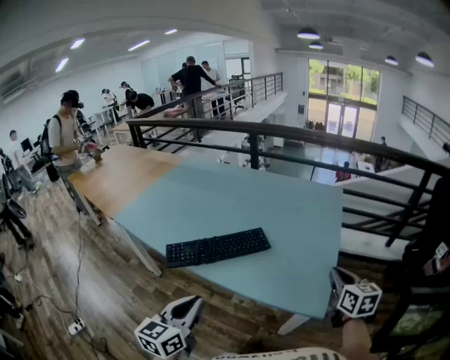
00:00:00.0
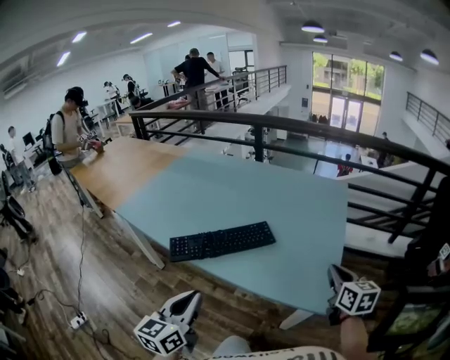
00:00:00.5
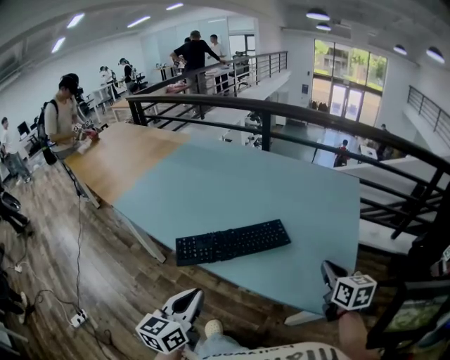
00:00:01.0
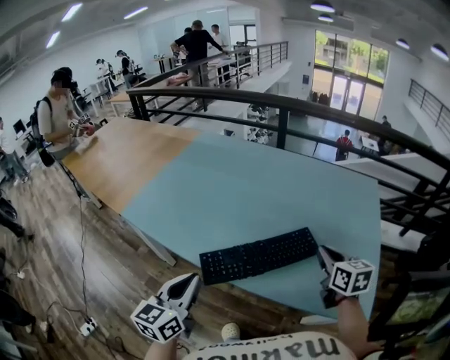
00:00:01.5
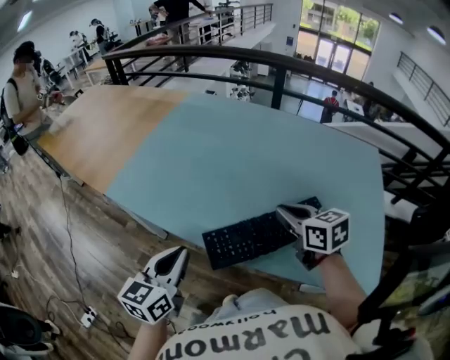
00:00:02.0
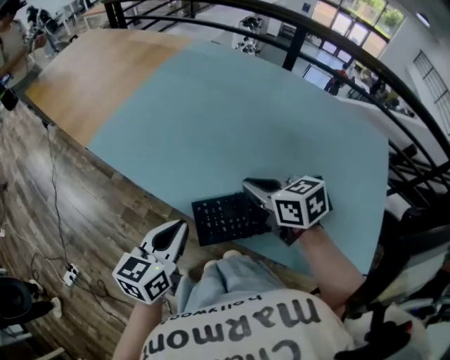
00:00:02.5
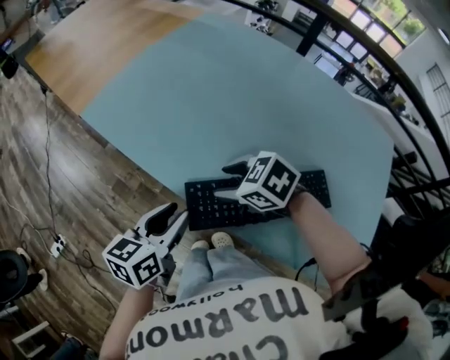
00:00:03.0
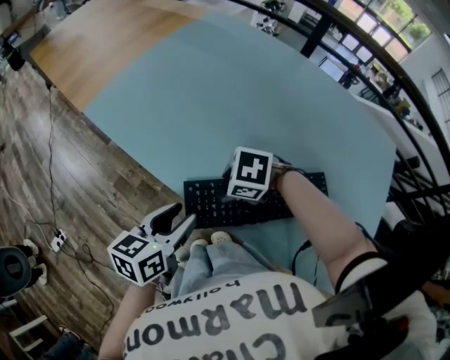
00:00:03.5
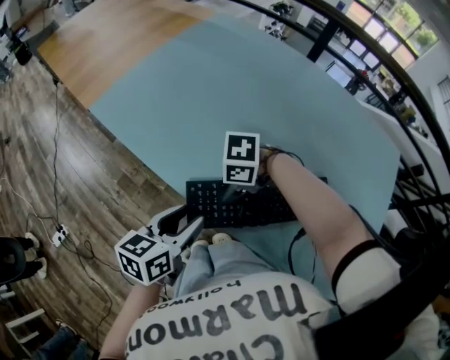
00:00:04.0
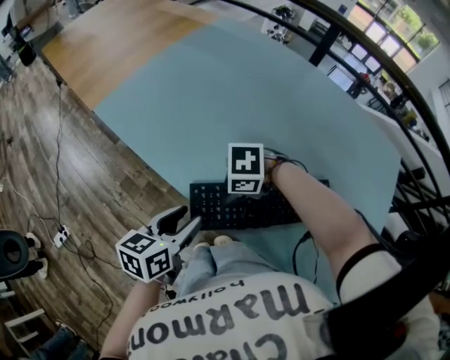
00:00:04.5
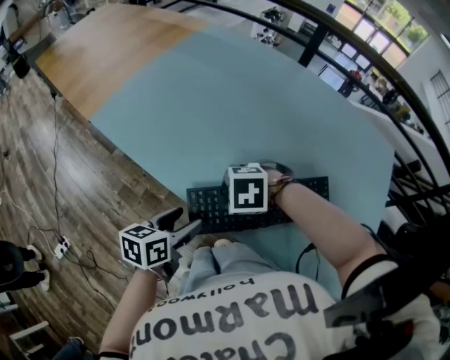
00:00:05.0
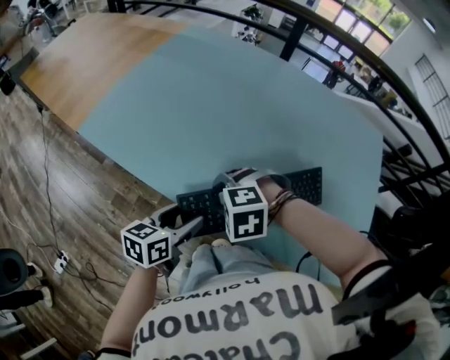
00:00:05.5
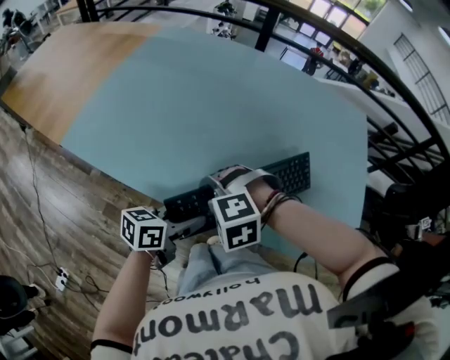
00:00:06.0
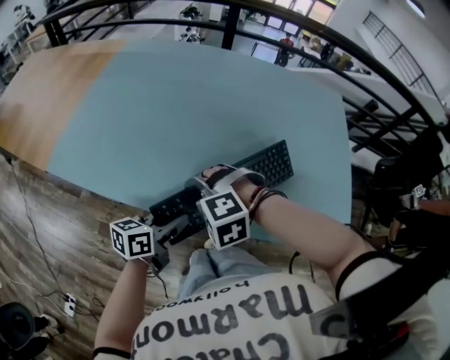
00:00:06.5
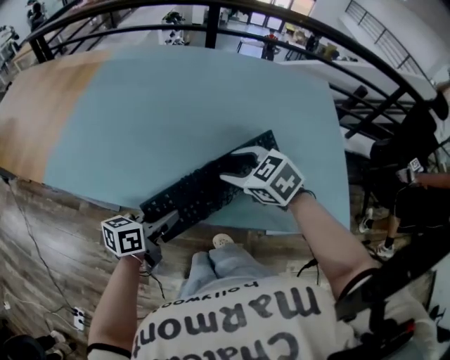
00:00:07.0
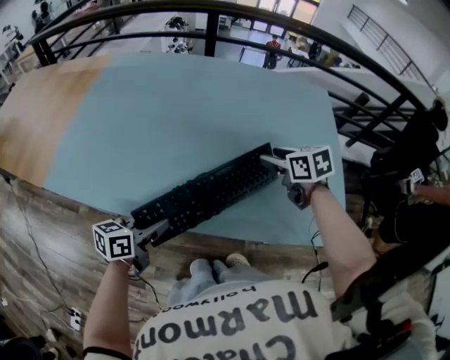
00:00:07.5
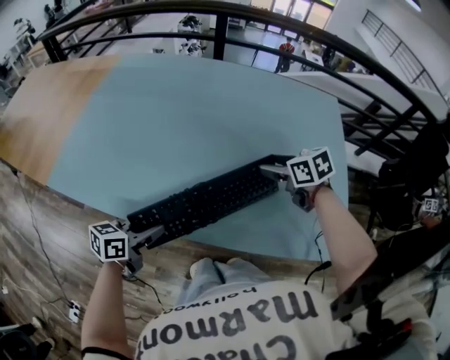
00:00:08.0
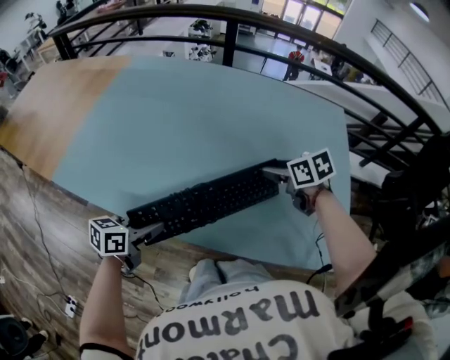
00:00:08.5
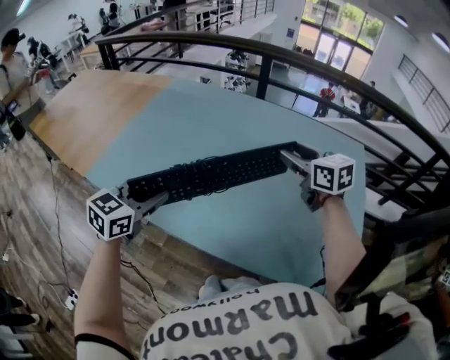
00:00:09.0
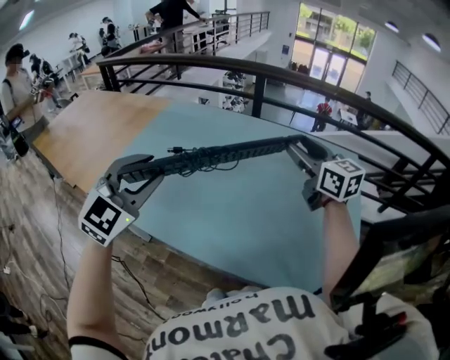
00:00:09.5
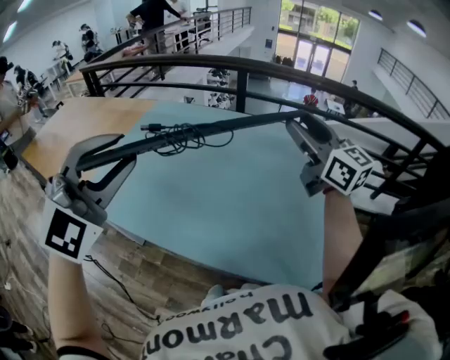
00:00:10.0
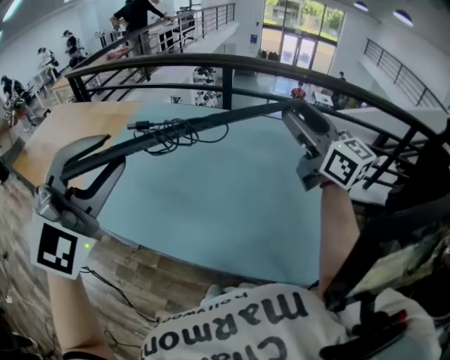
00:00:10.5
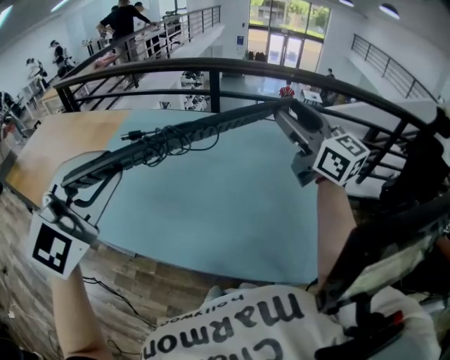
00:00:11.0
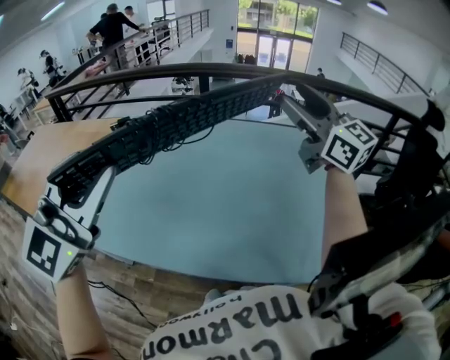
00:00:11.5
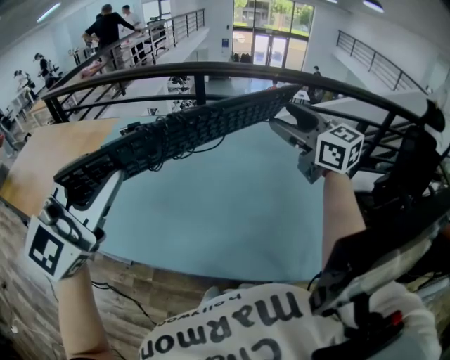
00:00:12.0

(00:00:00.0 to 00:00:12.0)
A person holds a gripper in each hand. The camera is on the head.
00:00:00.0 - 00:00:02.0: Both grippers move to the left and forward, about 35 cm. The right gripper changes its angle by approximately 30 degrees.
00:00:02.0 - 00:00:04.0: The right gripper heads downward, covering approximately 15 cm, tilts its fingers about 30 degrees downward, and opens. The left gripper heads downward, covering some 10 cm, rotates roughly 20 degrees, and opens up.
00:00:04.0 - 00:00:06.0: The right gripper travels upward by approximately 5 cm, and rotates roughly 50 degrees; the left gripper changes place by about 5 cm, and changes its angle by approximately 30 degrees.
00:00:06.0 - 00:00:08.0: The right gripper travels to the right and forward by roughly 30 cm, and rotates around the line of its fingers by approximately 90 degrees, clockwise from behind.
00:00:08.0 - 00:00:10.0: The two grippers go approximately 40 cm upward. The right gripper points its fingers approximately 60 degrees further upward; the left gripper twists some 100 degrees clockwise, seen from behind.
00:00:10.0 - 00:00:12.0: The grippers both shift to the right by some 5 cm. The left gripper rotates roughly 40 degrees.

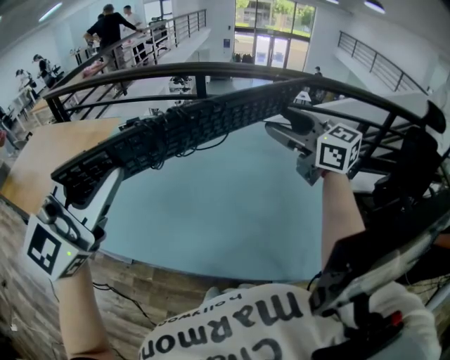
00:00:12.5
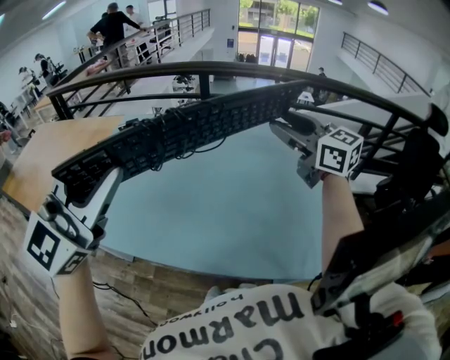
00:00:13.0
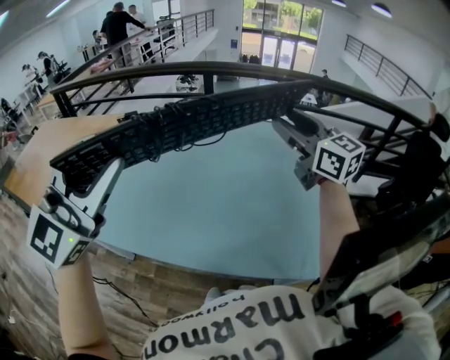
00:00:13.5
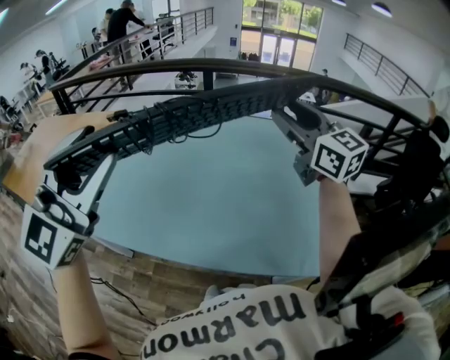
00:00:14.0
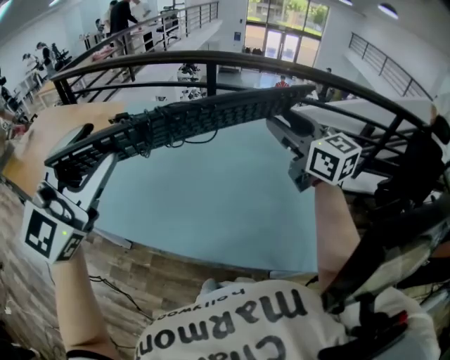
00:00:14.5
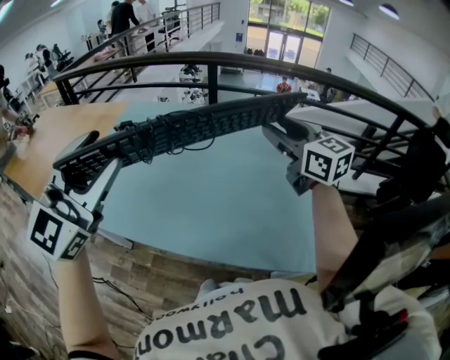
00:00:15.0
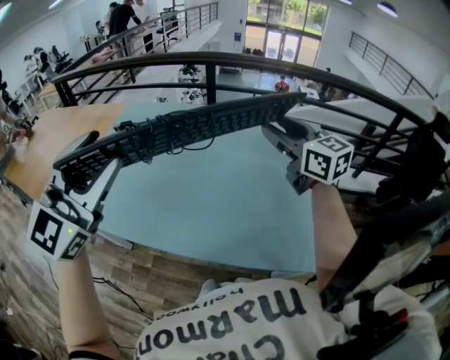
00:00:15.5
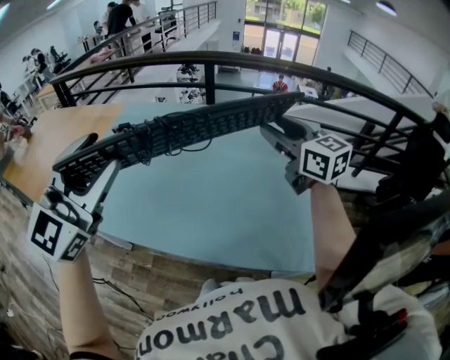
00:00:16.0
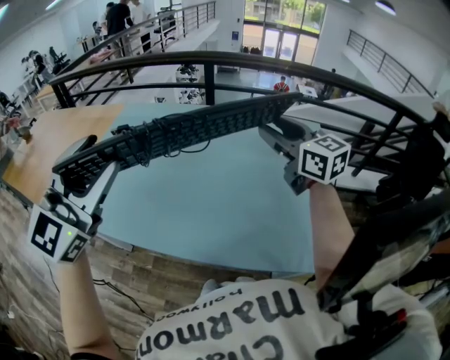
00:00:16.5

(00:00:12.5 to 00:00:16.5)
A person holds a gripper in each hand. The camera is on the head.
00:00:12.5 - 00:00:14.5: The left gripper opens up.
00:00:14.5 - 00:00:16.5: The grippers stay close to where they were, moving slightly.

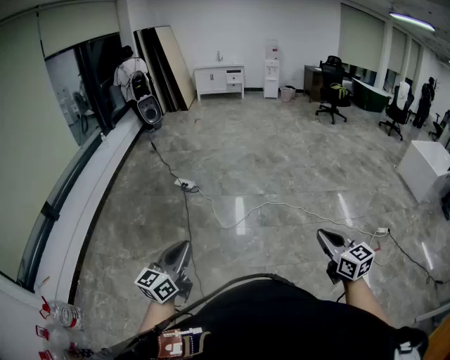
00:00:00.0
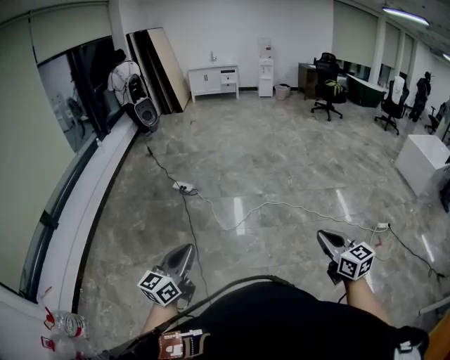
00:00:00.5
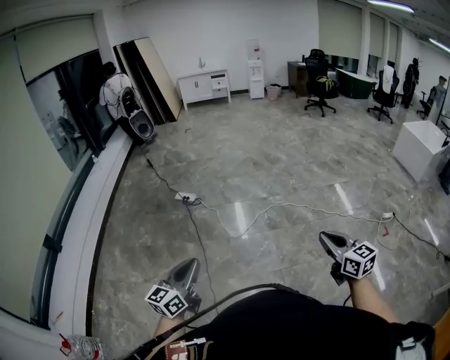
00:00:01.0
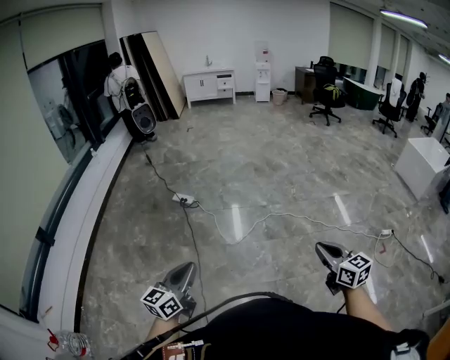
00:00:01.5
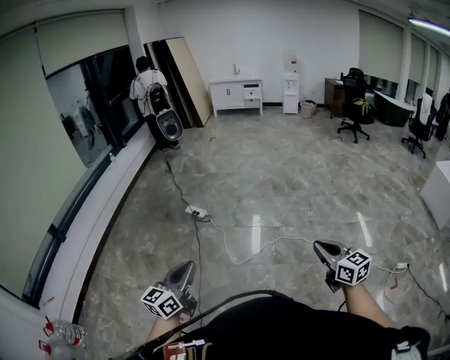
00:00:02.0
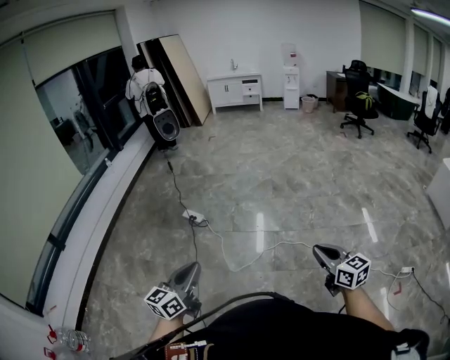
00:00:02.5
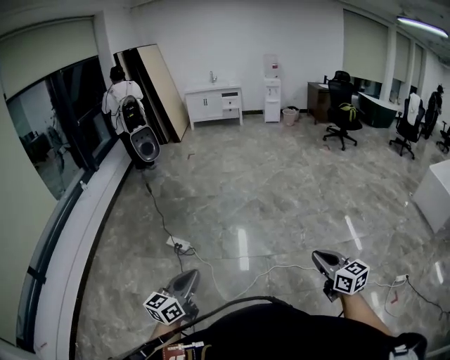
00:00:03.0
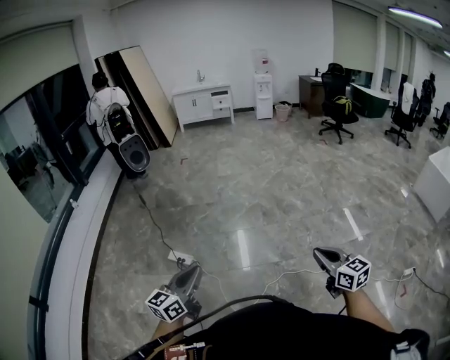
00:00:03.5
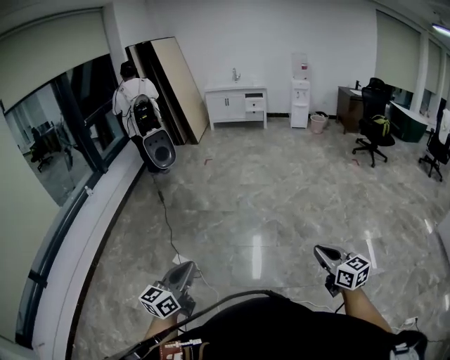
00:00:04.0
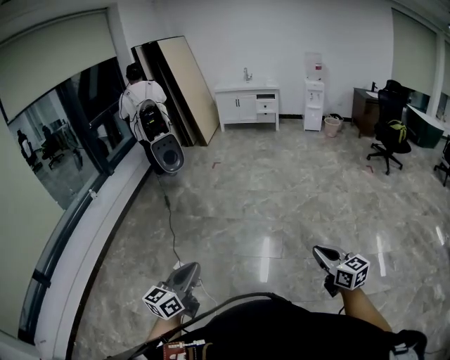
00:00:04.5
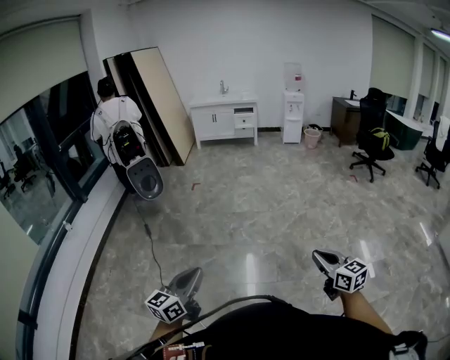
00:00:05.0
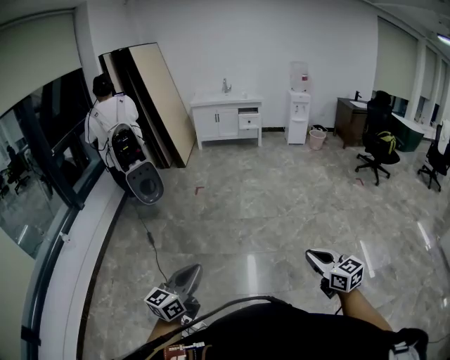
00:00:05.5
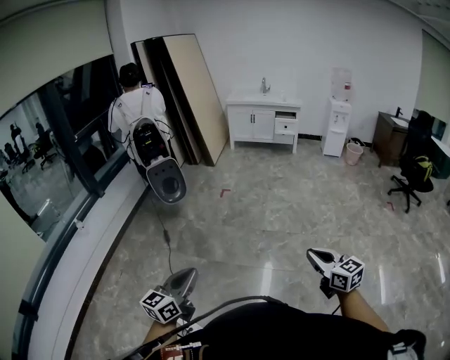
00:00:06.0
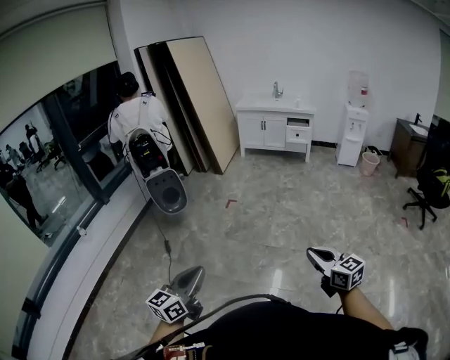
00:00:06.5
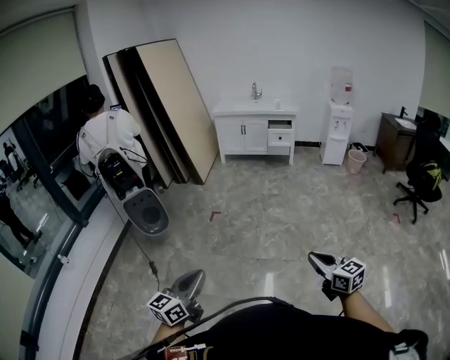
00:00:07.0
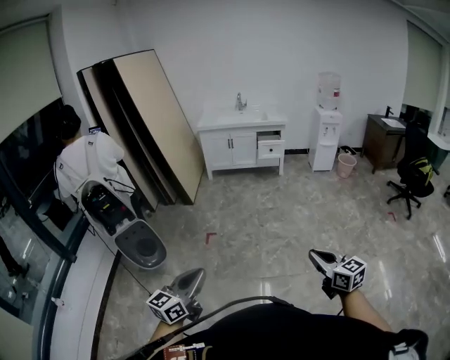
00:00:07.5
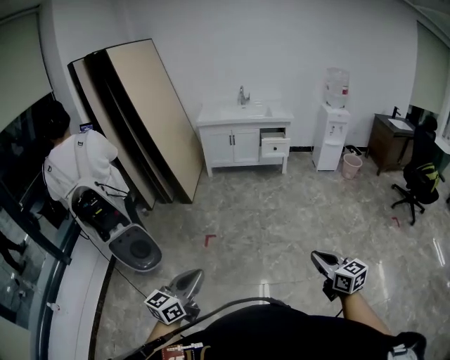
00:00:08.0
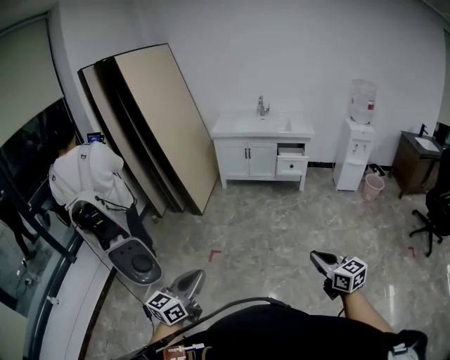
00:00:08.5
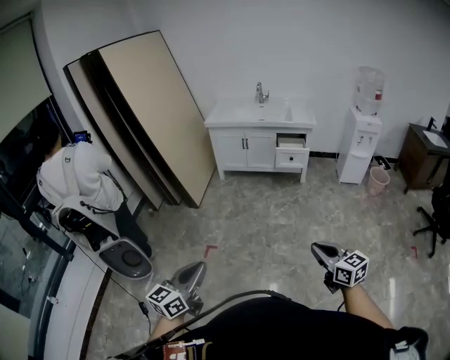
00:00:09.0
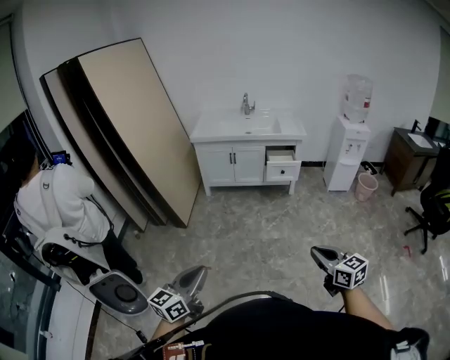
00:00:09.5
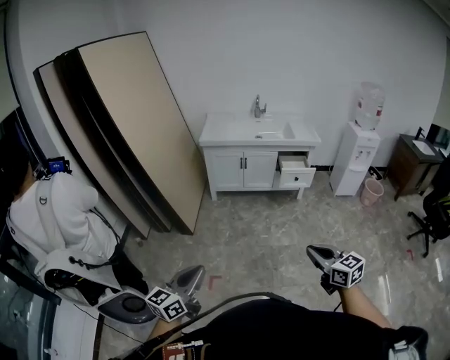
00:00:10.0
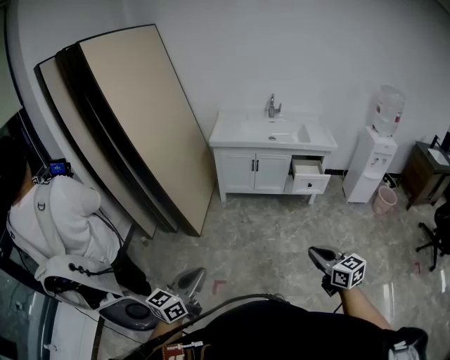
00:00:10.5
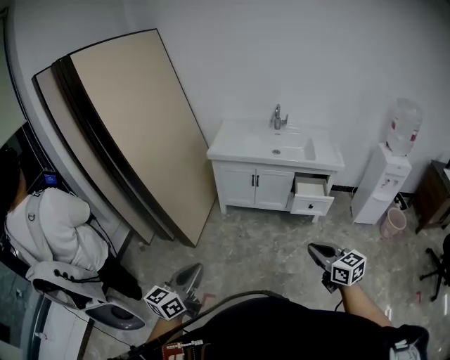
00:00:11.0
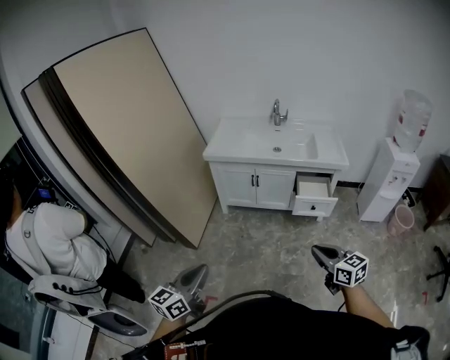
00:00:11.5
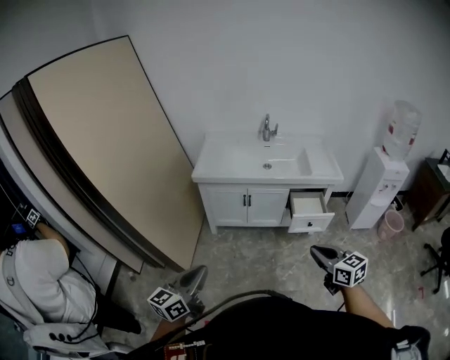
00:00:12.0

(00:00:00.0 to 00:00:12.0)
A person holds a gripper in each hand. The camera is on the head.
00:00:00.0 - 00:00:02.0: Both grippers move forward, roughly 25 cm.
00:00:02.0 - 00:00:04.0: Both grippers are carried forward, approximately 60 cm.
00:00:04.0 - 00:00:06.0: Both grippers are carried forward, roughly 70 cm.
00:00:06.0 - 00:00:08.0: Both grippers are carried forward, roughly 60 cm.
00:00:08.0 - 00:00:10.0: Both grippers are carried forward, roughly 50 cm.
00:00:10.0 - 00:00:12.0: The two grippers travel together, forward, about 40 cm.
